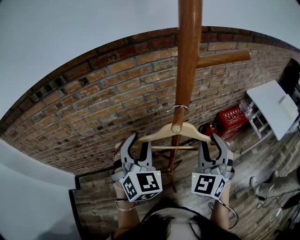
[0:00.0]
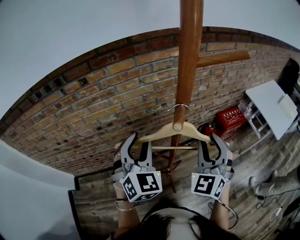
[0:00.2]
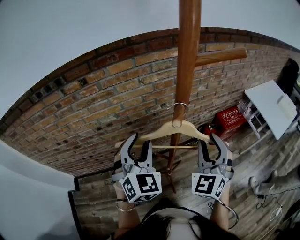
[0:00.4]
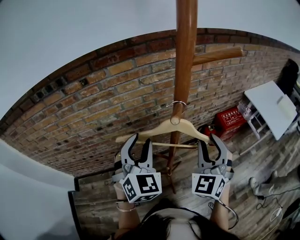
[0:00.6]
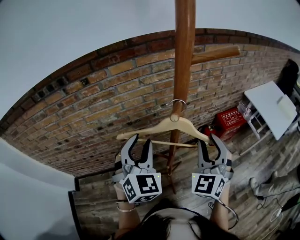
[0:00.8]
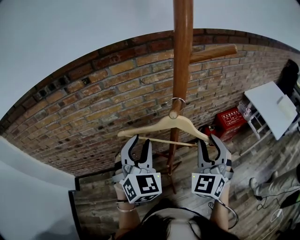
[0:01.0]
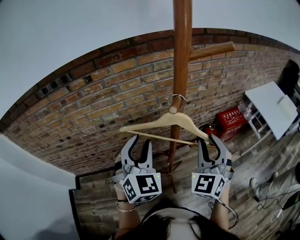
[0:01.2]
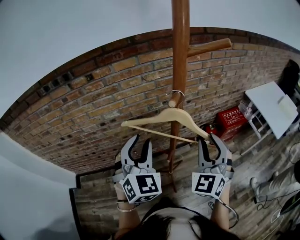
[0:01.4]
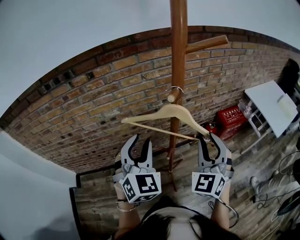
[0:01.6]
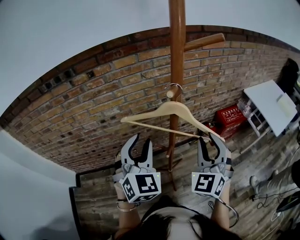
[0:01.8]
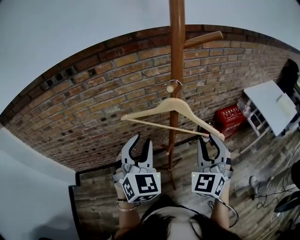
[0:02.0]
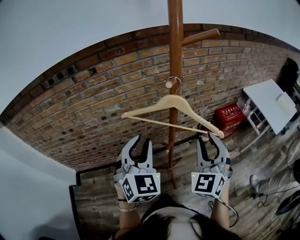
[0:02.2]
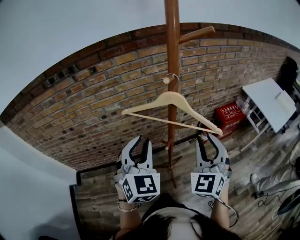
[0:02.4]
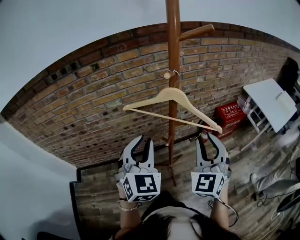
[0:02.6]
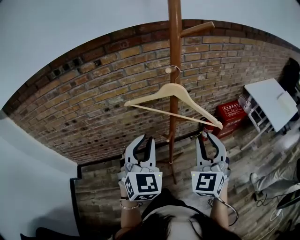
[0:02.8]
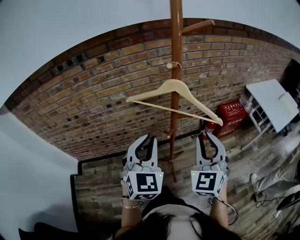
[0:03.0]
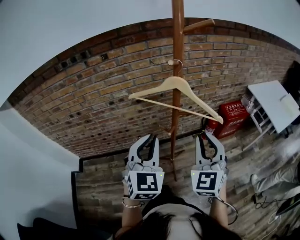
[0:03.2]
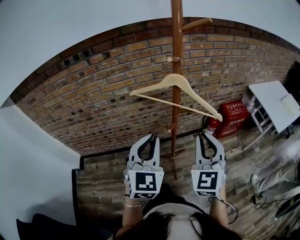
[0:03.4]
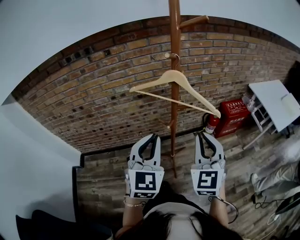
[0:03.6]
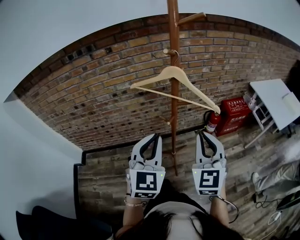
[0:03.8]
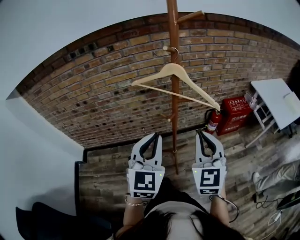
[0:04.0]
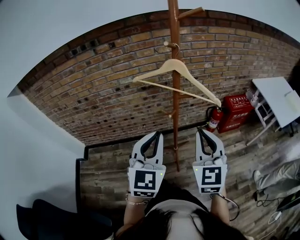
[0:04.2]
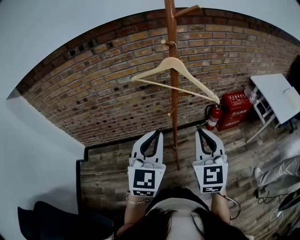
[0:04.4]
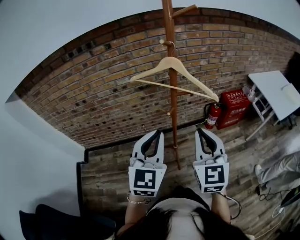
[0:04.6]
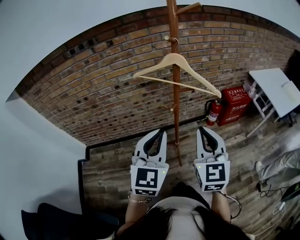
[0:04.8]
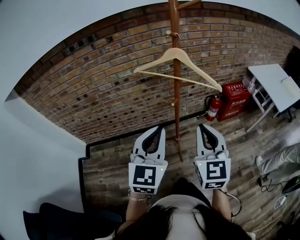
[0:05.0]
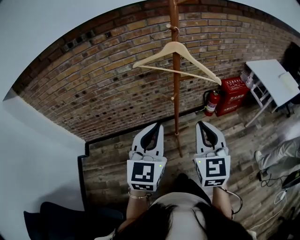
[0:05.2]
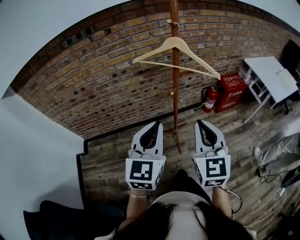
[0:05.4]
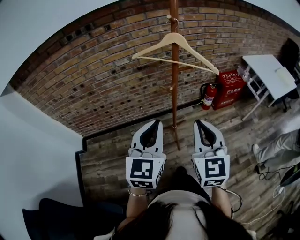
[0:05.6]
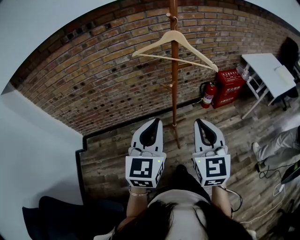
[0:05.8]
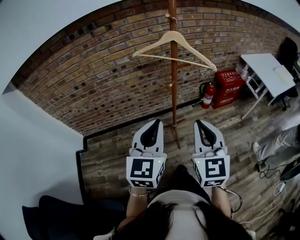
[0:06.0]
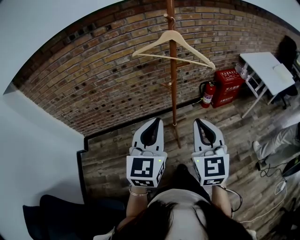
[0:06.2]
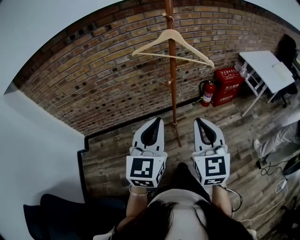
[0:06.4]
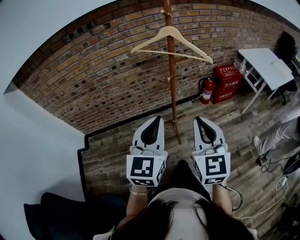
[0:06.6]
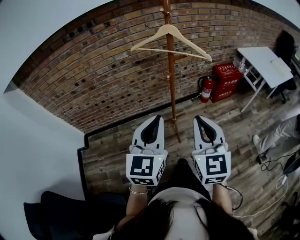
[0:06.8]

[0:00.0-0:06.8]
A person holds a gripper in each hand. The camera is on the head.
0:00.0 to 0:01.4: The left gripper moves backward, roughly 5 cm.
0:01.4 to 0:02.8: Both grippers travel together backward, about 10 cm.
0:02.8 to 0:04.0: Both grippers move backward, approximately 10 cm.
0:04.0 to 0:05.4: The two grippers go approximately 10 cm backward.
0:05.4 to 0:06.8: Both grippers travel together backward, some 10 cm.

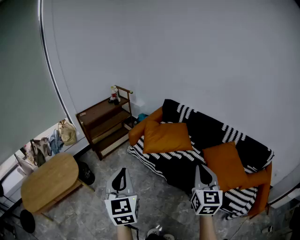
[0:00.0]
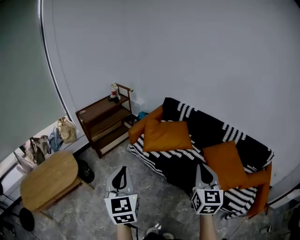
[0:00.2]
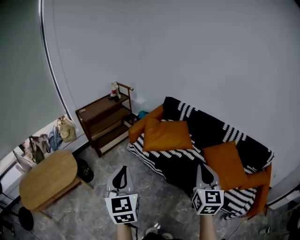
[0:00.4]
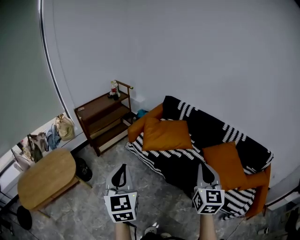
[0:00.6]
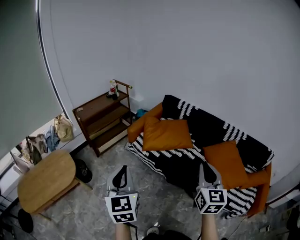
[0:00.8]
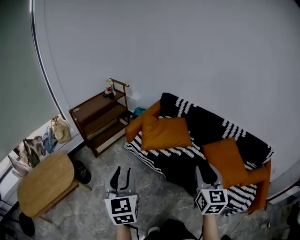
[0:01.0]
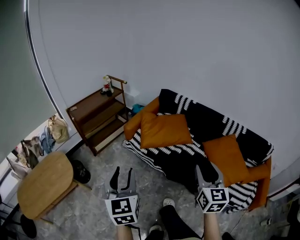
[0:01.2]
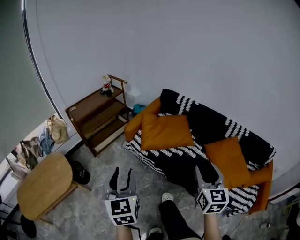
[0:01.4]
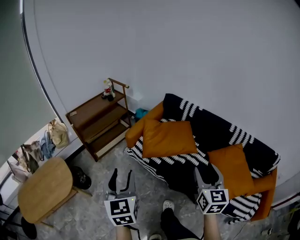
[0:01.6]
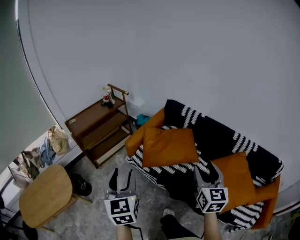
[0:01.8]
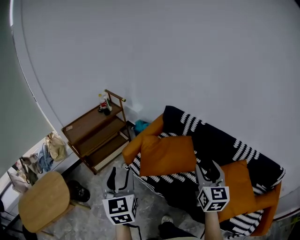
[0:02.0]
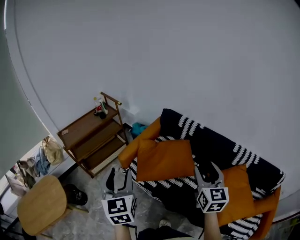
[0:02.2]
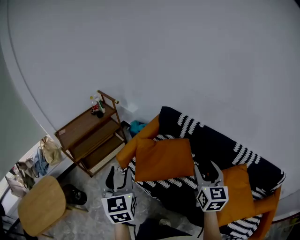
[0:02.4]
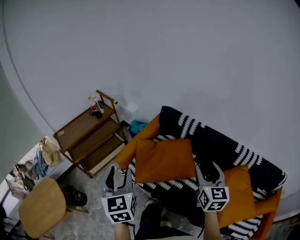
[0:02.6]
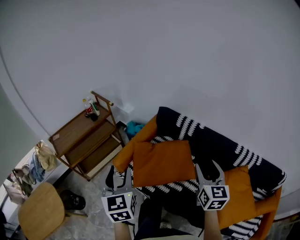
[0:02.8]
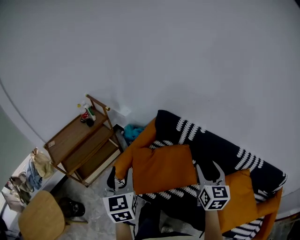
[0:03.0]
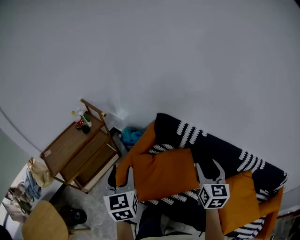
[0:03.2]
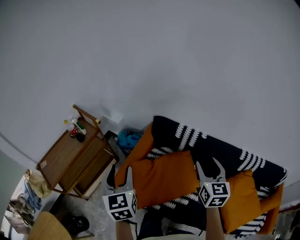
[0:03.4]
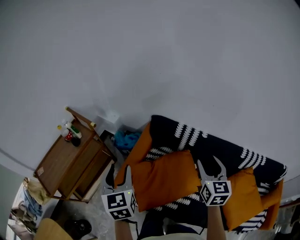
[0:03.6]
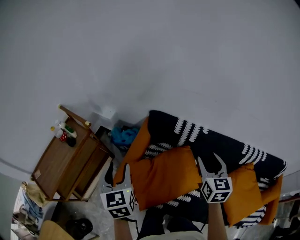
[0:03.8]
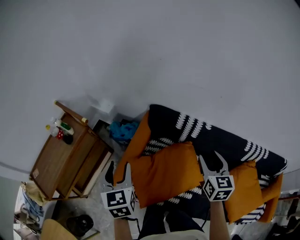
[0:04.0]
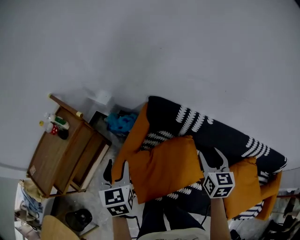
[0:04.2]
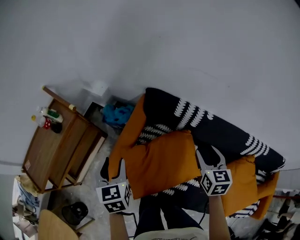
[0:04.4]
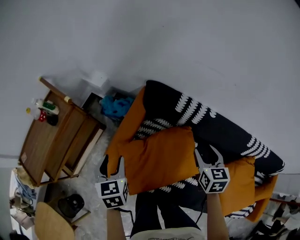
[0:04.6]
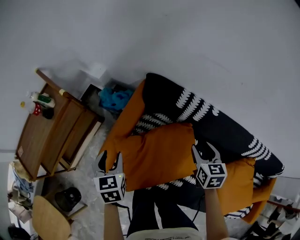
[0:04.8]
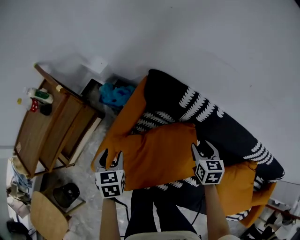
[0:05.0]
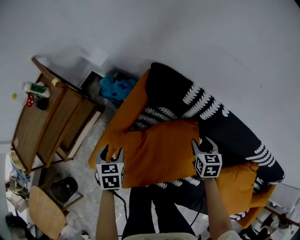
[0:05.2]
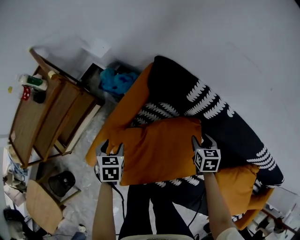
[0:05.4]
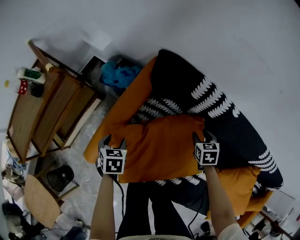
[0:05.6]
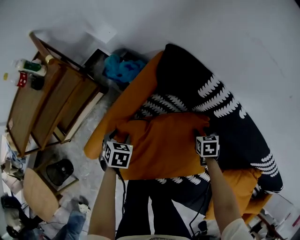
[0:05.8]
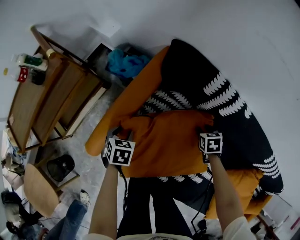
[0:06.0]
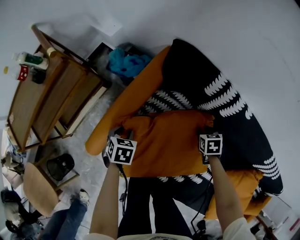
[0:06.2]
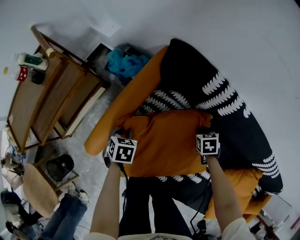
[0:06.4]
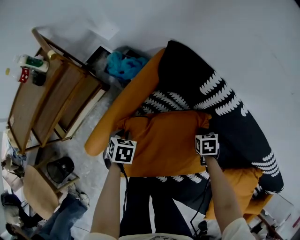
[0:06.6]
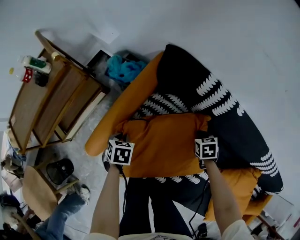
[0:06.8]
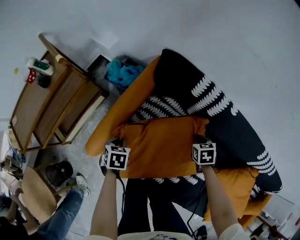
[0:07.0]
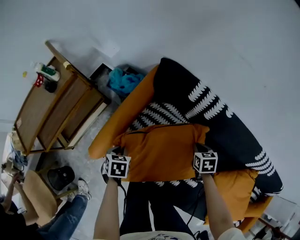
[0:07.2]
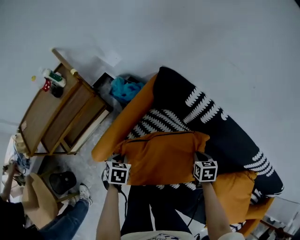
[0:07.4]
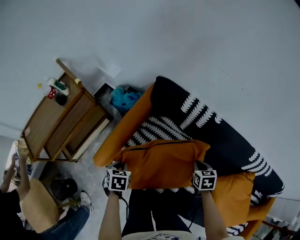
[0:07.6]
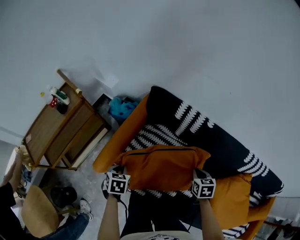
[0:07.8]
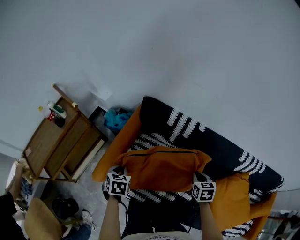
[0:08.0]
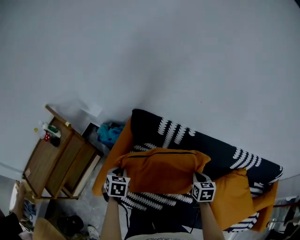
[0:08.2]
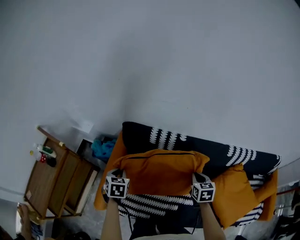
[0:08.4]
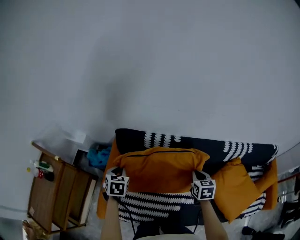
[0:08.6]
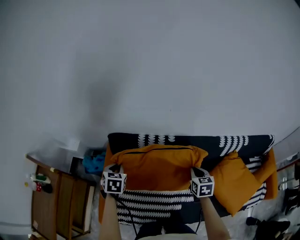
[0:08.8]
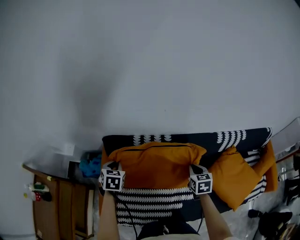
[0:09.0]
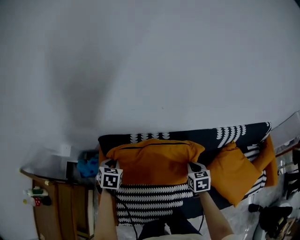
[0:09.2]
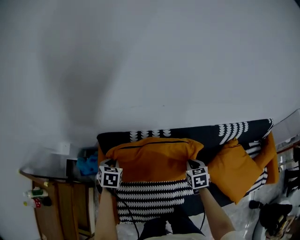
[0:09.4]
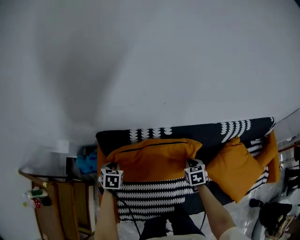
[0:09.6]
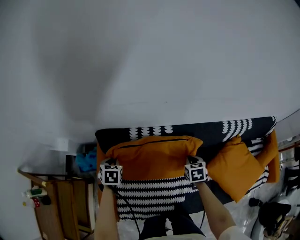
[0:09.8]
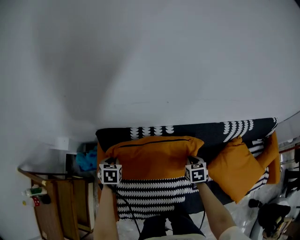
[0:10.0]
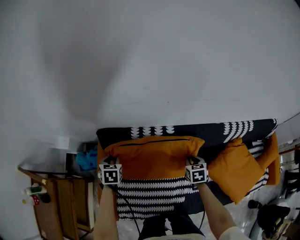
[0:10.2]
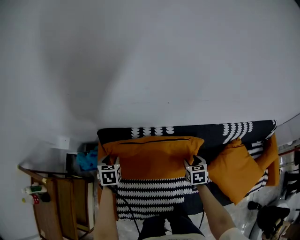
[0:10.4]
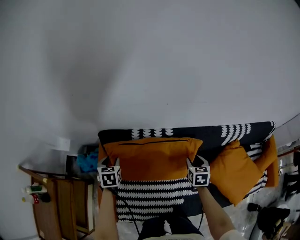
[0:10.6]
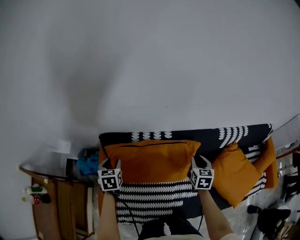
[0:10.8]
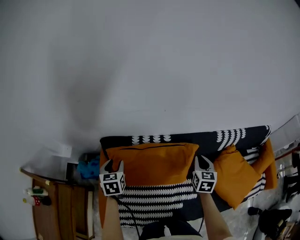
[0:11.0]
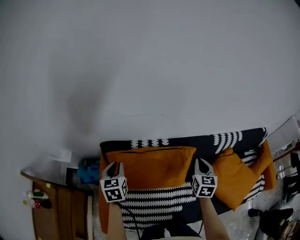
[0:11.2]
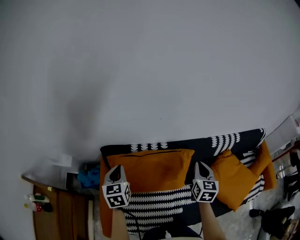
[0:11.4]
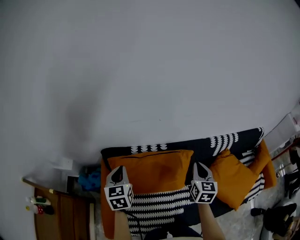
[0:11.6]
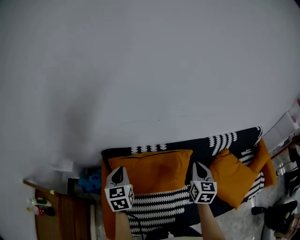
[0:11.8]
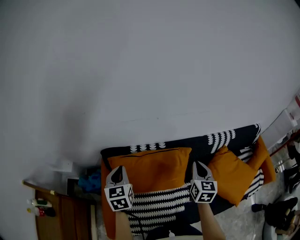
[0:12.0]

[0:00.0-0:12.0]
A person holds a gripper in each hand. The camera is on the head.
0:00.0 to 0:01.6: Both grippers travel together forward, some 20 cm. The left gripper opens up. The right gripper opens.
0:01.6 to 0:03.0: The two grippers go roughly 40 cm forward.
0:03.0 to 0:04.4: Both grippers move forward and downward, some 30 cm. The left gripper swivels roughly 20 degrees, while the right gripper rotates roughly 20 degrees.
0:04.4 to 0:06.0: Both grippers move downward, roughly 35 cm. The right gripper tips its fingers downward by roughly 40 degrees; the left gripper points its fingers roughly 30 degrees further downward.
0:06.0 to 0:07.6: Both grippers travel together upward, roughly 15 cm. The left gripper closes its fingers, while the right gripper closes up.
0:07.6 to 0:09.0: The right gripper travels upward by approximately 15 cm, and swivels approximately 40 degrees. The left gripper changes place by roughly 35 cm, and turns by some 40 degrees.
0:09.0 to 0:10.4: Both grippers travel together downward, approximately 10 cm. The left gripper opens; the right gripper opens.
0:10.4 to 0:12.0: The two grippers go roughly 25 cm upward. The right gripper tilts its fingers about 30 degrees upward, and closes. The left gripper changes its angle by roughly 30 degrees, and closes its fingers.

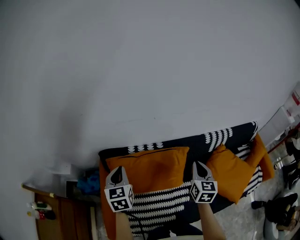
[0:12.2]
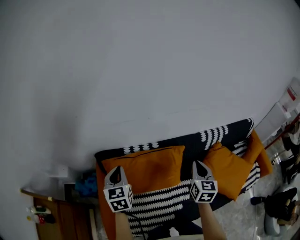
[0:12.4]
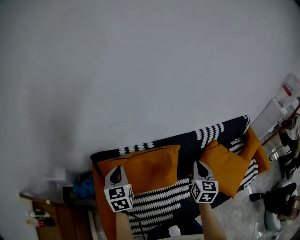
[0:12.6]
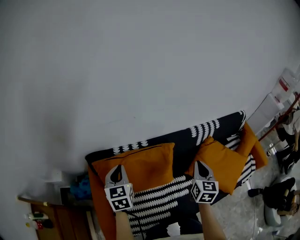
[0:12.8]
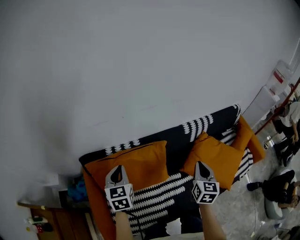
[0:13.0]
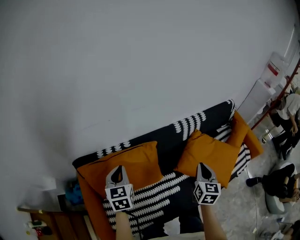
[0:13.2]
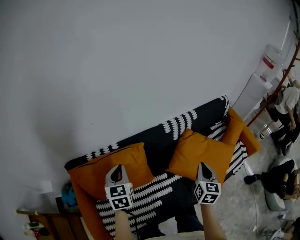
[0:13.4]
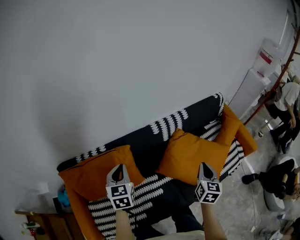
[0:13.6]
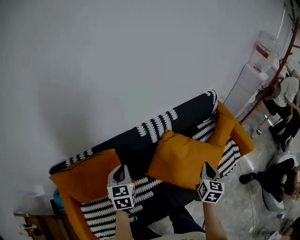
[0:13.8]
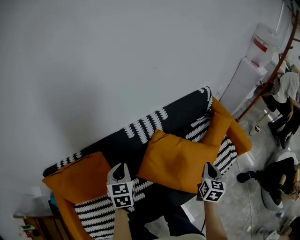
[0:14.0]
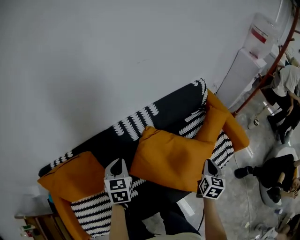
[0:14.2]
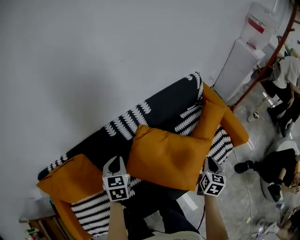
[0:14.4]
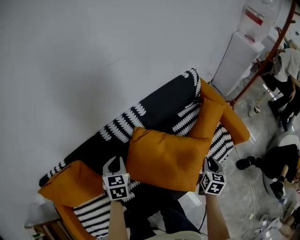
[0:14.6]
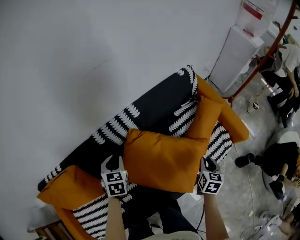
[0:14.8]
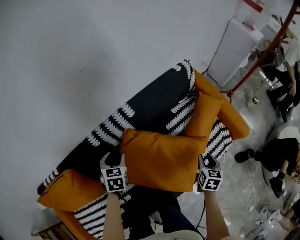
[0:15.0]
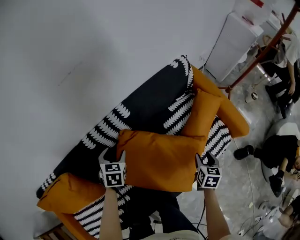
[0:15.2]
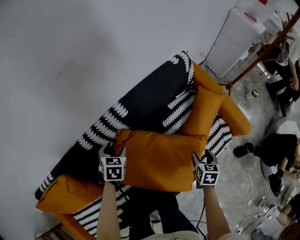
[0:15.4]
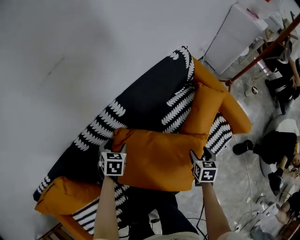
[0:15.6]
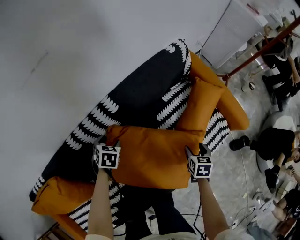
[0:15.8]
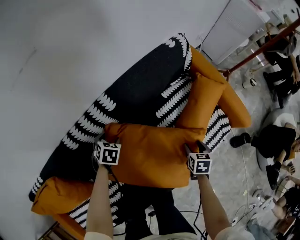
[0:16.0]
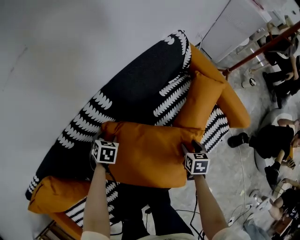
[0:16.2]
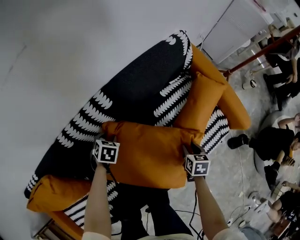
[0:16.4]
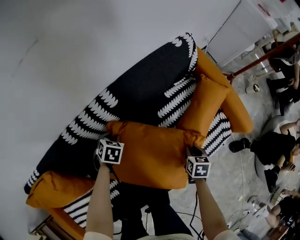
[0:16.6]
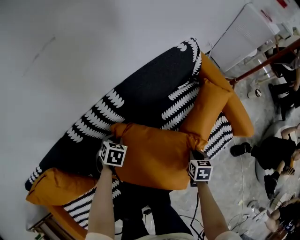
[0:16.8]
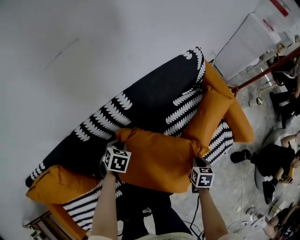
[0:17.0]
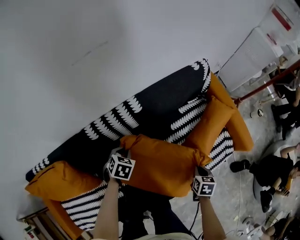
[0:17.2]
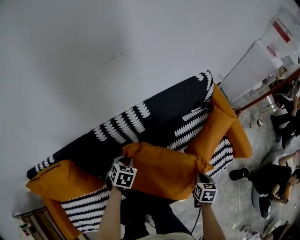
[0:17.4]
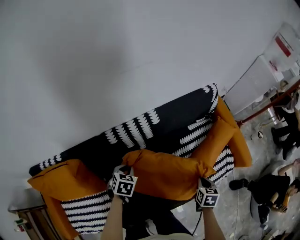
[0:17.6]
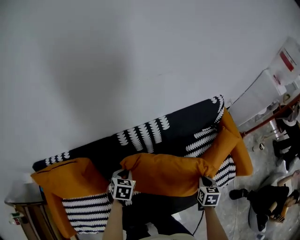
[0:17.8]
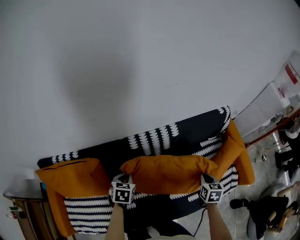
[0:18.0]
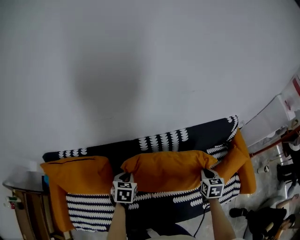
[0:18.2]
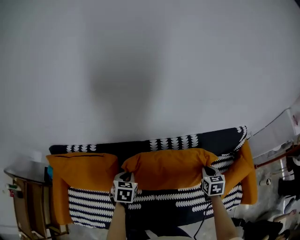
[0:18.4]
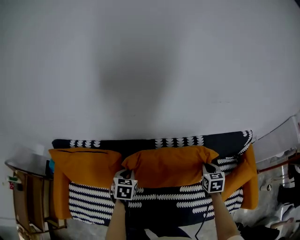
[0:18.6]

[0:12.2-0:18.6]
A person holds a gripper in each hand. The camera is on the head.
0:12.2 to 0:13.8: Both grippers are carried to the right, about 50 cm. The right gripper turns by approximately 30 degrees. Meanwhile the left gripper turns by some 20 degrees.
0:13.8 to 0:15.4: The right gripper travels downward, to the right and forward by about 35 cm, changes its angle by about 30 degrees, and opens its fingers. Meanwhile the left gripper moves forward, downward and to the right, about 40 cm, turns by some 30 degrees, and opens.
0:15.4 to 0:17.0: The right gripper ends up some 5 cm from where it was, and closes up. Meanwhile the left gripper moves downward, roughly 5 cm, and closes up.
0:17.0 to 0:18.6: The right gripper moves roughly 35 cm, and changes its angle by approximately 40 degrees. Meanwhile the left gripper moves about 30 cm, and rotates approximately 40 degrees.
